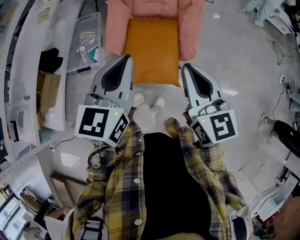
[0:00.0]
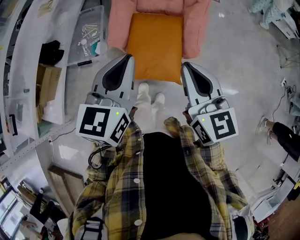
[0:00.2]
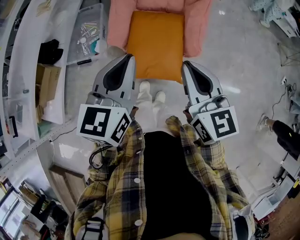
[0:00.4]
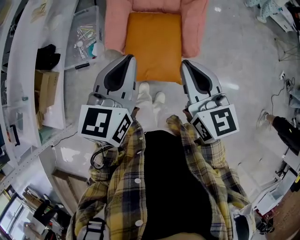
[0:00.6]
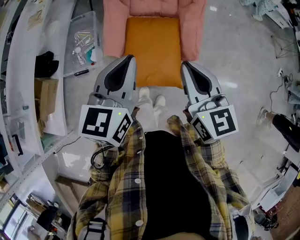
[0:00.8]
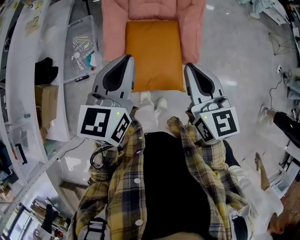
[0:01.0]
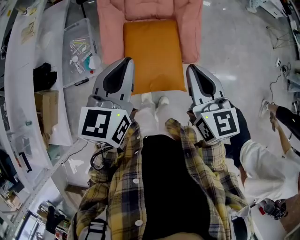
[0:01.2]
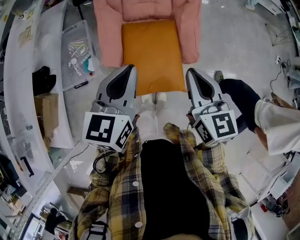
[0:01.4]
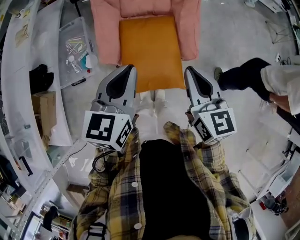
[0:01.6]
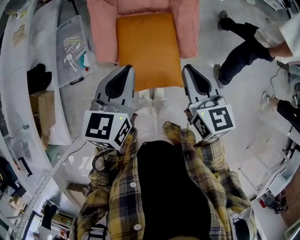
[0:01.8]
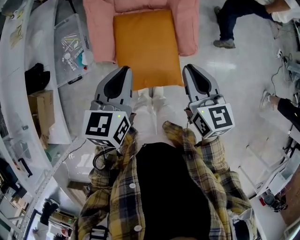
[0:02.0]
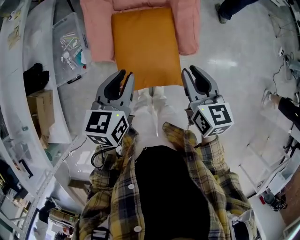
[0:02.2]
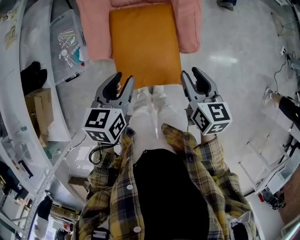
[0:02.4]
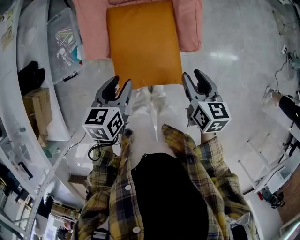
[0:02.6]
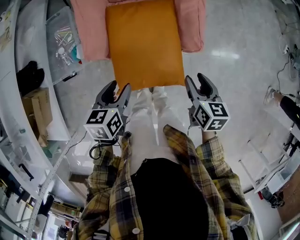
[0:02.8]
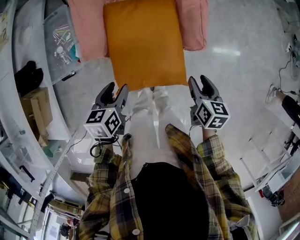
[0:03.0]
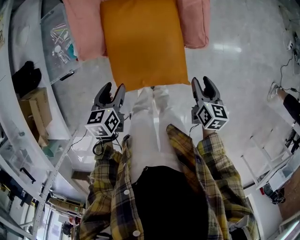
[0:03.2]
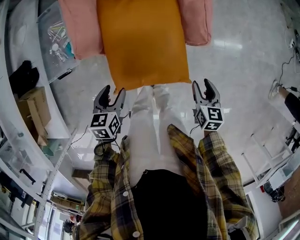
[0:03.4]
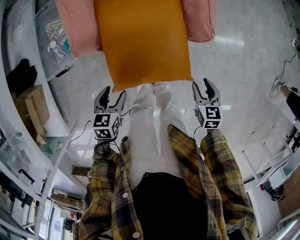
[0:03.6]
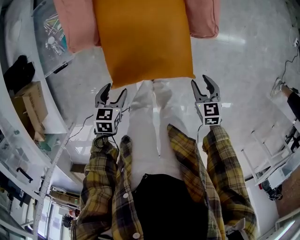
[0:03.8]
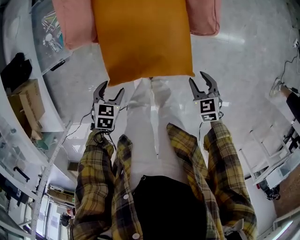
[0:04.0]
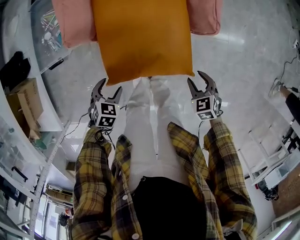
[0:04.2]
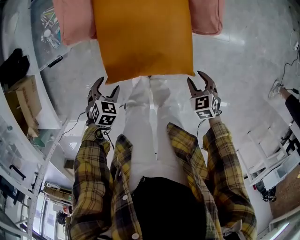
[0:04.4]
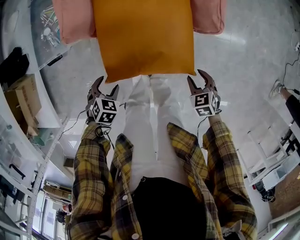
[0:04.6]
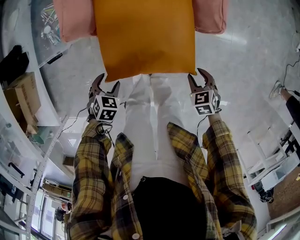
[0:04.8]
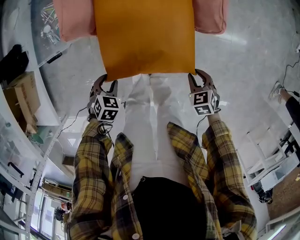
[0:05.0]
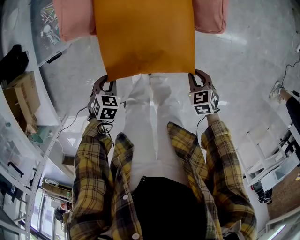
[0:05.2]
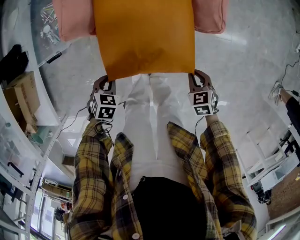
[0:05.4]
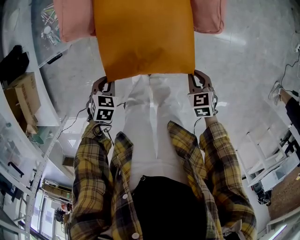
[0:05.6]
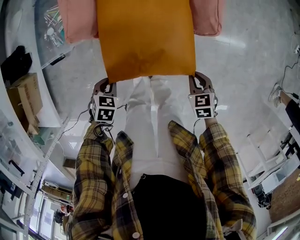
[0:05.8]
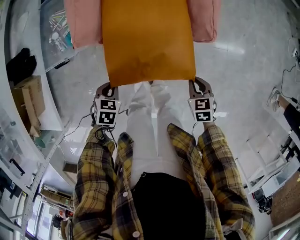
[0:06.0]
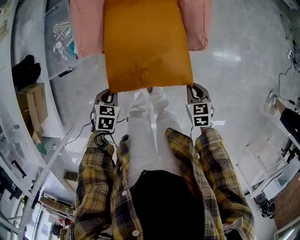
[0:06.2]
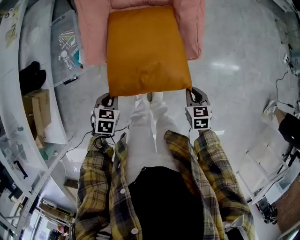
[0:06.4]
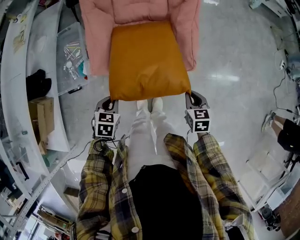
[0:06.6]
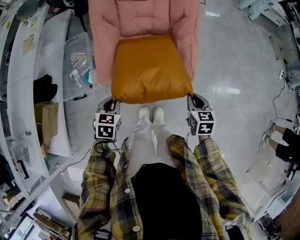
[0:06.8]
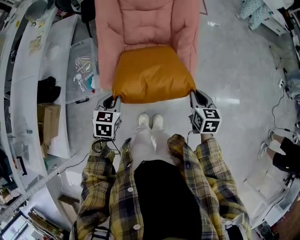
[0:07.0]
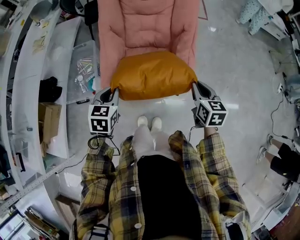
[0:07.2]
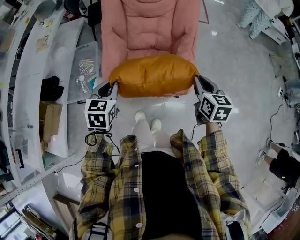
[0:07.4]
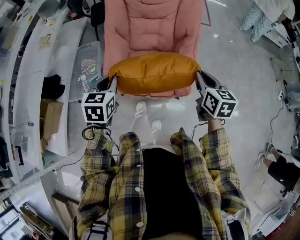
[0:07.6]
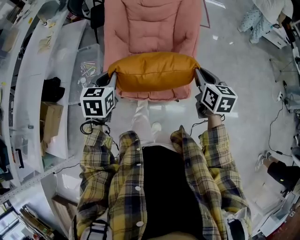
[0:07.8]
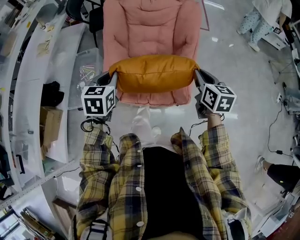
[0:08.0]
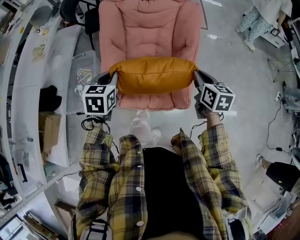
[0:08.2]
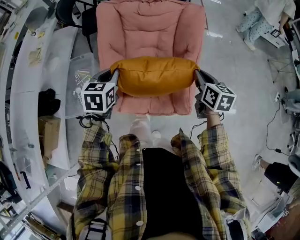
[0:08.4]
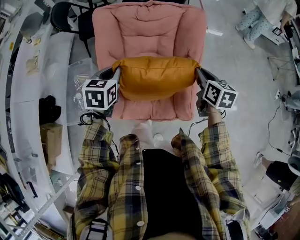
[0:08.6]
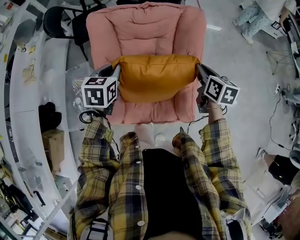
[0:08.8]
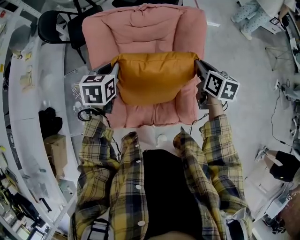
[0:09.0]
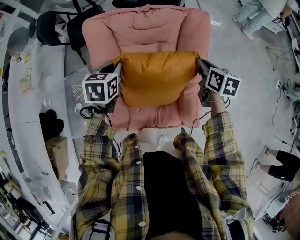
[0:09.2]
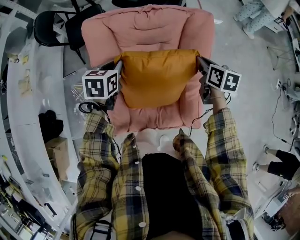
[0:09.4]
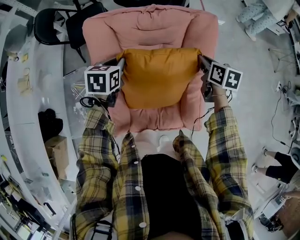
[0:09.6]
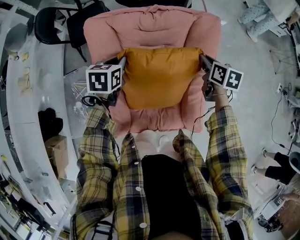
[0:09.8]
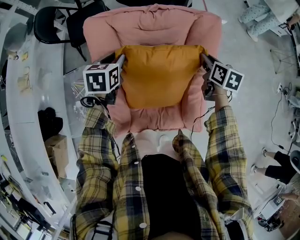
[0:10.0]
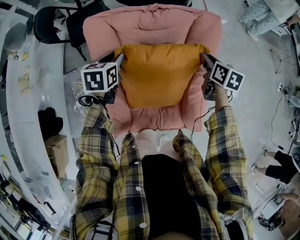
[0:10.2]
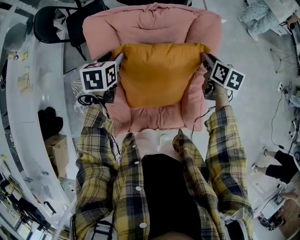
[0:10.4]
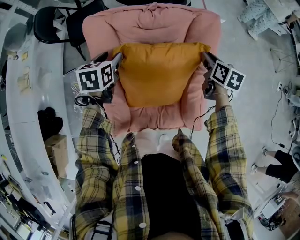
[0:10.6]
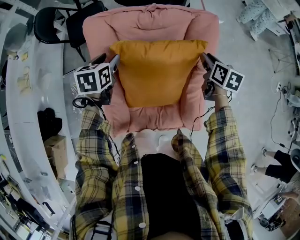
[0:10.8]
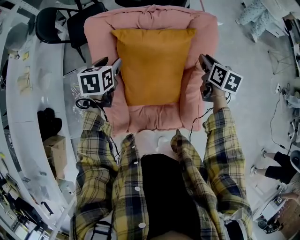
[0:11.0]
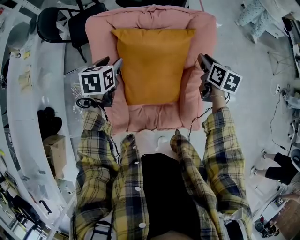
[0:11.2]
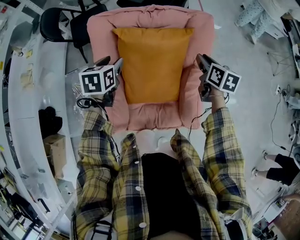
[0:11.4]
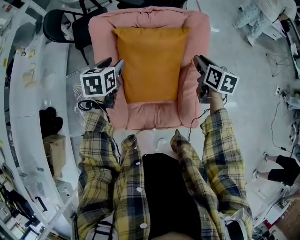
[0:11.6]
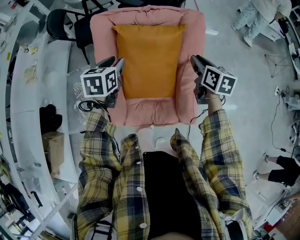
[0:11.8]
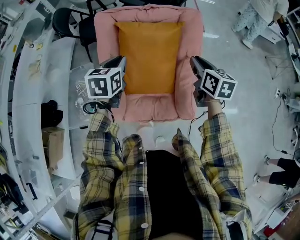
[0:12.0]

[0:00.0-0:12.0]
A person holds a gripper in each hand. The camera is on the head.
0:00.0 to 0:01.6: The right gripper is displaced downward and forward by about 10 cm. Meanwhile the left gripper travels forward and downward by about 10 cm.
0:01.6 to 0:03.0: Both grippers travel together downward, about 30 cm. The right gripper rotates roughly 30 degrees, and opens up; the left gripper rotates roughly 30 degrees, and opens its fingers.
0:03.0 to 0:04.4: The two grippers go about 20 cm downward and backward. The right gripper rotates around the line of its fingers by about 50 degrees, counterclockwise from behind. The left gripper twists some 40 degrees clockwise, seen from behind.
0:04.4 to 0:06.0: The left gripper moves approximately 5 cm, and closes up; the right gripper travels upward by roughly 5 cm, and closes.
0:06.0 to 0:07.6: Both grippers move upward and forward, about 40 cm. The right gripper tilts its fingers about 30 degrees upward; the left gripper angles its fingers upward, by about 30 degrees.
0:07.6 to 0:09.0: The two grippers go some 30 cm forward.
0:09.0 to 0:10.4: Both grippers move forward and downward, about 10 cm. The left gripper opens up.
0:10.4 to 0:12.0: The left gripper shifts some 25 cm backward, upward and to the right, and closes up, while the right gripper travels backward and upward by about 20 cm.

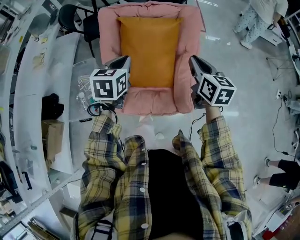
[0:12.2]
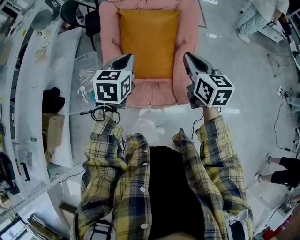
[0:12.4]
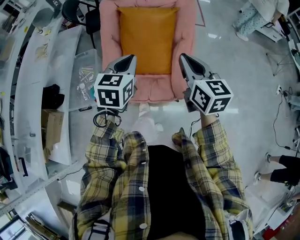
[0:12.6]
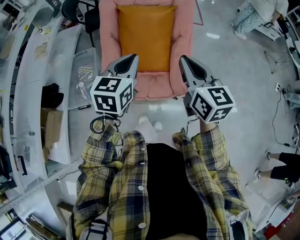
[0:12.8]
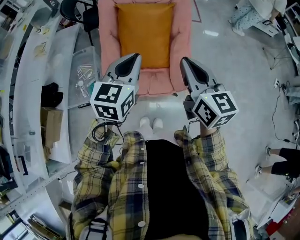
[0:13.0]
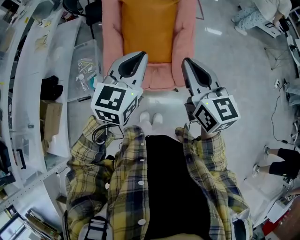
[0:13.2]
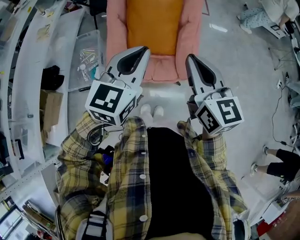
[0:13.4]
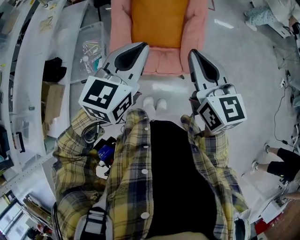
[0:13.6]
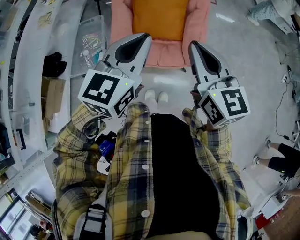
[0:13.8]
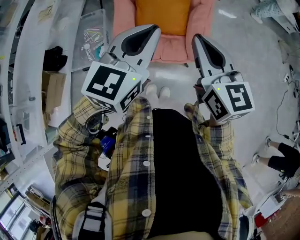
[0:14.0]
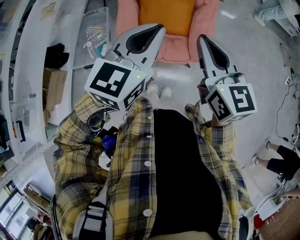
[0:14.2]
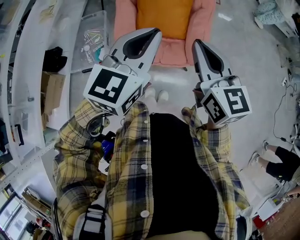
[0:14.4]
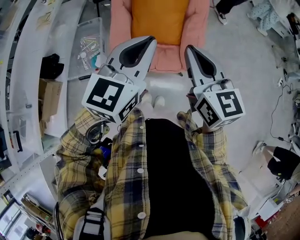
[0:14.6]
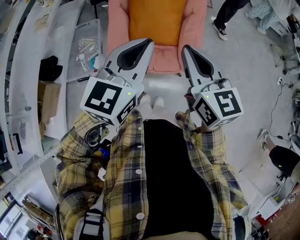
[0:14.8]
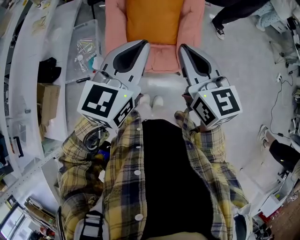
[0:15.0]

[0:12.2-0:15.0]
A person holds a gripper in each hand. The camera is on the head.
0:12.2 to 0:13.6: The two grippers go some 30 cm backward and upward. The left gripper turns by roughly 20 degrees.
0:13.6 to 0:15.0: The grippers make only small movements.

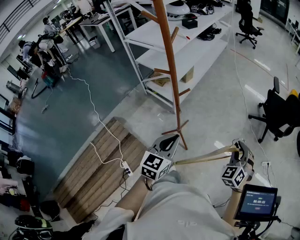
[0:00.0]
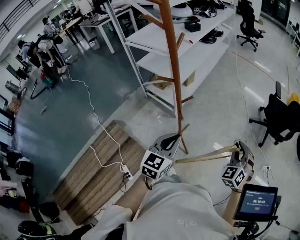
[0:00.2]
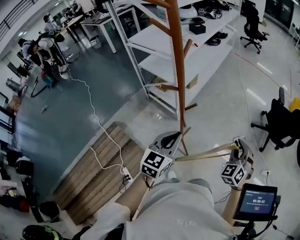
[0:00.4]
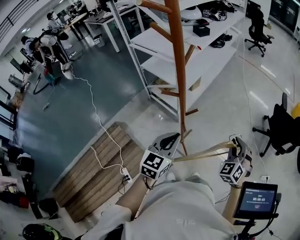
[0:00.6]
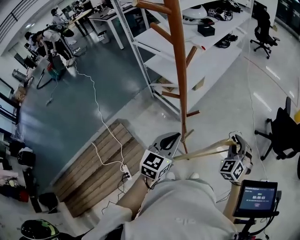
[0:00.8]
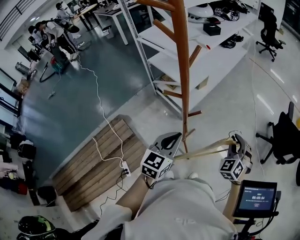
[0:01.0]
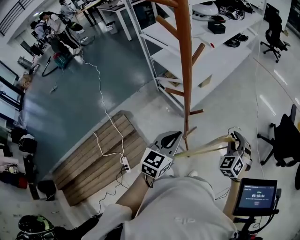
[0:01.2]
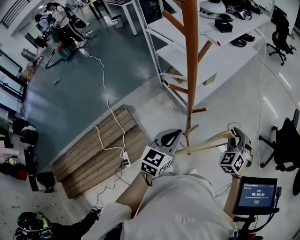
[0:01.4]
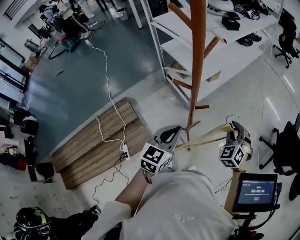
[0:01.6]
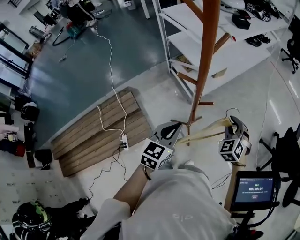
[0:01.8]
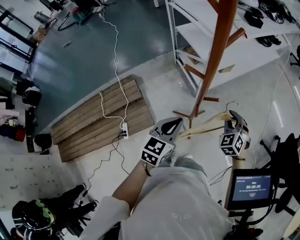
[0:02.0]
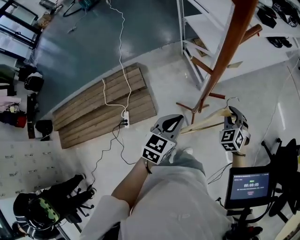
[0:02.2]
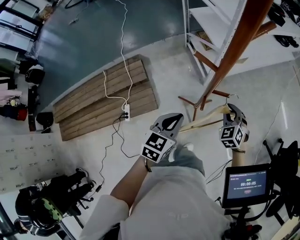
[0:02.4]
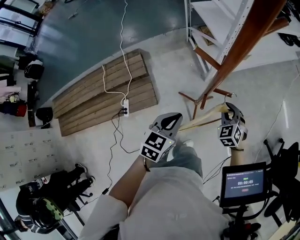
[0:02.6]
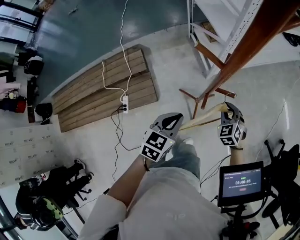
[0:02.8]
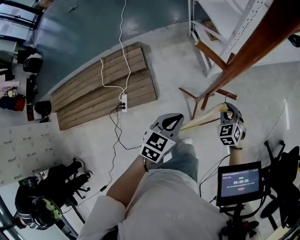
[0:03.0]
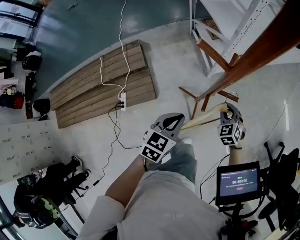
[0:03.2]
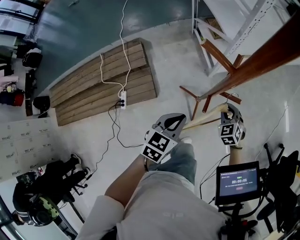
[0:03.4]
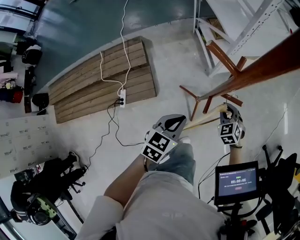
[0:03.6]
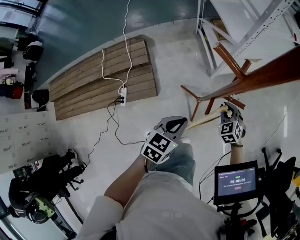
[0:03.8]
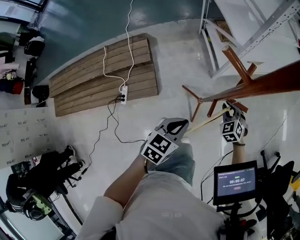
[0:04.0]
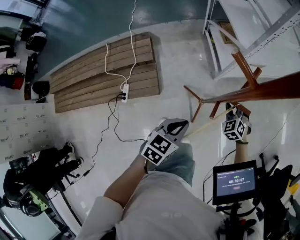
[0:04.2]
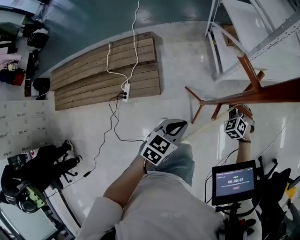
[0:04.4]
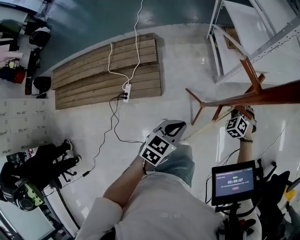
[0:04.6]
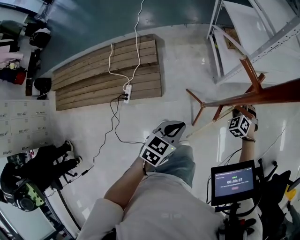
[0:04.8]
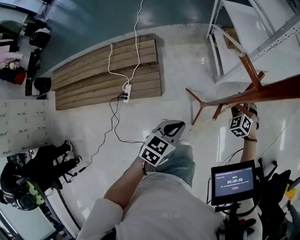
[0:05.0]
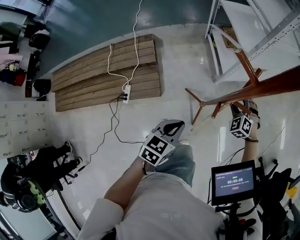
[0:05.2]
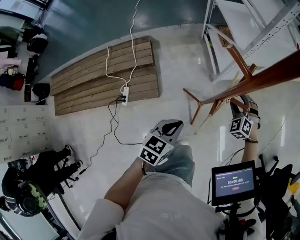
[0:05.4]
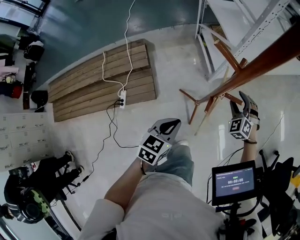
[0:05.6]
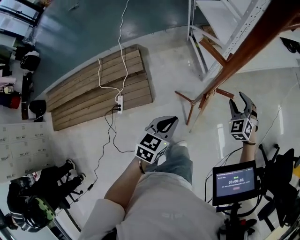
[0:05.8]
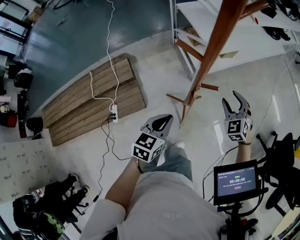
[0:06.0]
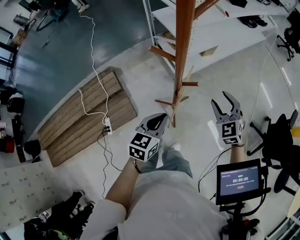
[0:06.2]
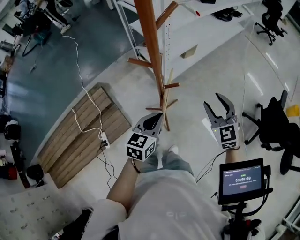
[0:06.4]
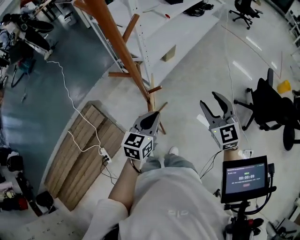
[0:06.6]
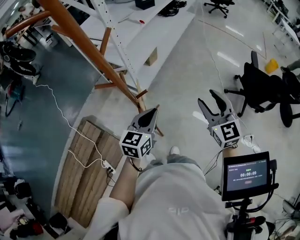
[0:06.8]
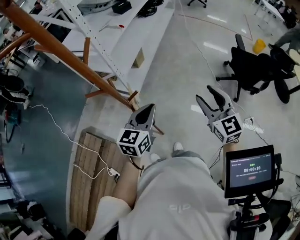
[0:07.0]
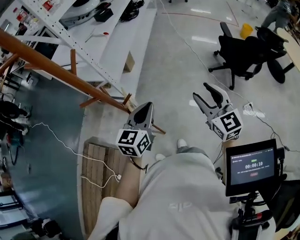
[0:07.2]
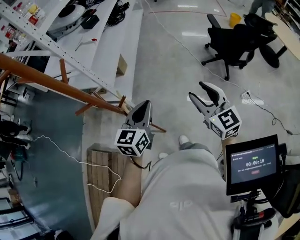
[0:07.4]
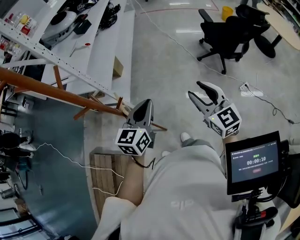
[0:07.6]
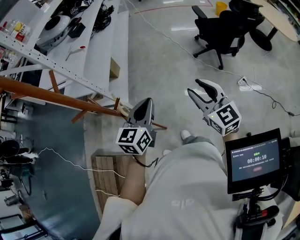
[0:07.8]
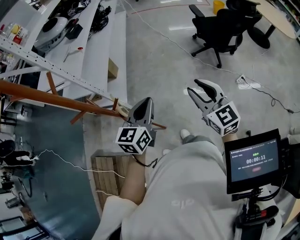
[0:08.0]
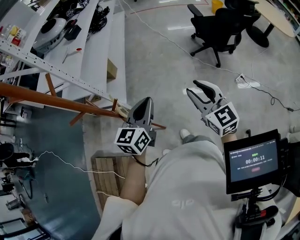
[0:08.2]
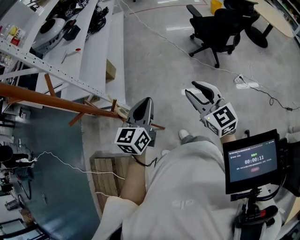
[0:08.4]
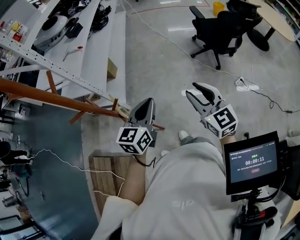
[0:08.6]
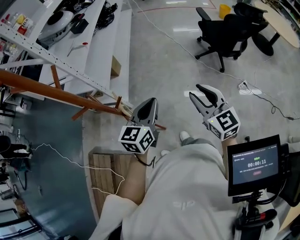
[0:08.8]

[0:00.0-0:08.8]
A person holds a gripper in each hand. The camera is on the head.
0:00.0 to 0:01.4: The left gripper goes about 15 cm forward and to the left, while the right gripper shifts roughly 25 cm forward and to the left.
0:01.4 to 0:03.0: The two grippers go about 20 cm downward. The right gripper turns by approximately 40 degrees; the left gripper turns by roughly 30 degrees.
0:03.0 to 0:04.4: The right gripper goes approximately 10 cm forward and downward, and swivels approximately 20 degrees; the left gripper shifts some 5 cm downward.
0:04.4 to 0:05.8: The right gripper goes roughly 15 cm upward and to the right, and opens.
0:05.8 to 0:07.4: The right gripper ends up roughly 40 cm from where it was, and rotates approximately 70 degrees. The left gripper shifts by roughly 30 cm, and turns by some 50 degrees.
0:07.4 to 0:08.8: There are only small adjustments of the grippers.
